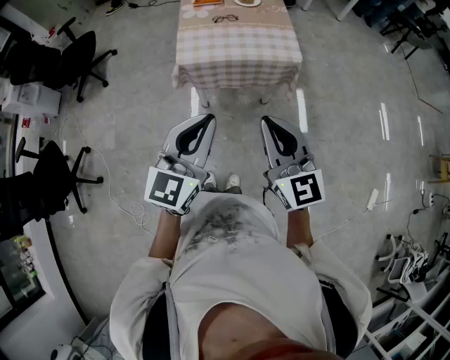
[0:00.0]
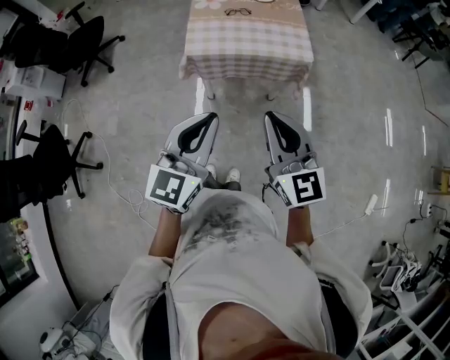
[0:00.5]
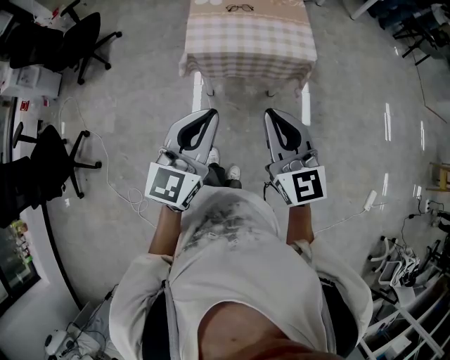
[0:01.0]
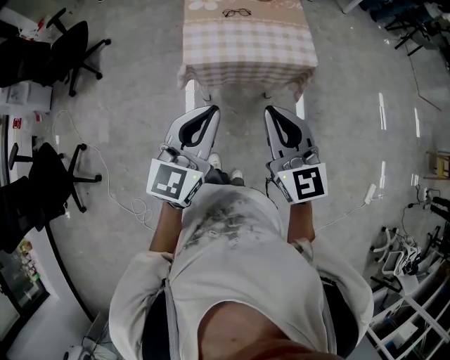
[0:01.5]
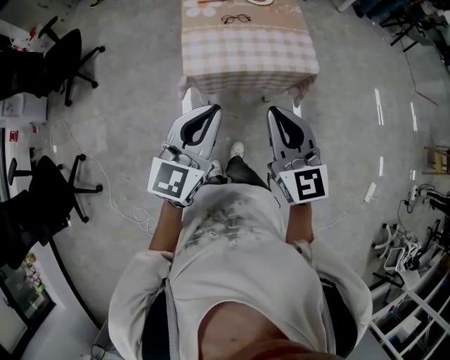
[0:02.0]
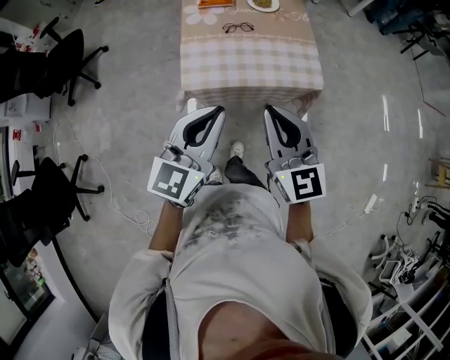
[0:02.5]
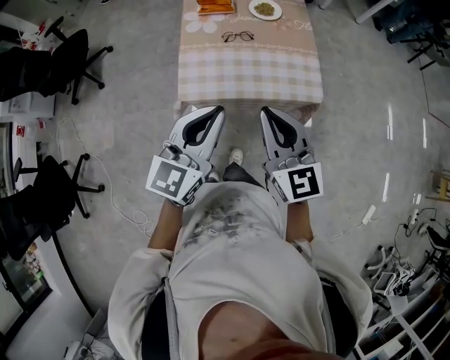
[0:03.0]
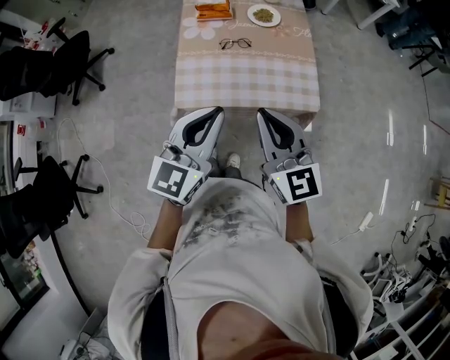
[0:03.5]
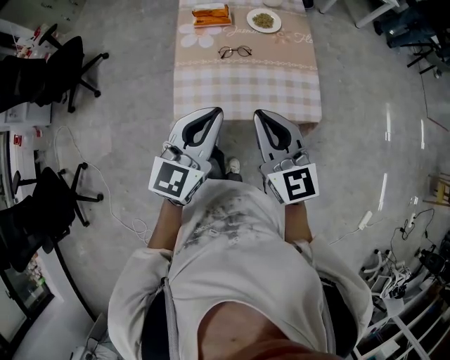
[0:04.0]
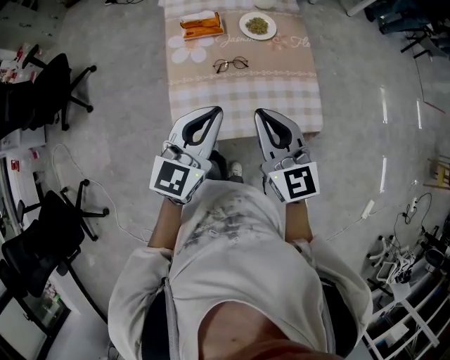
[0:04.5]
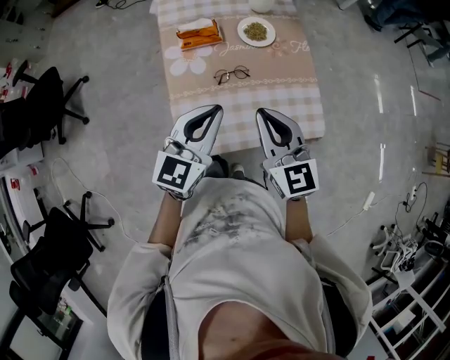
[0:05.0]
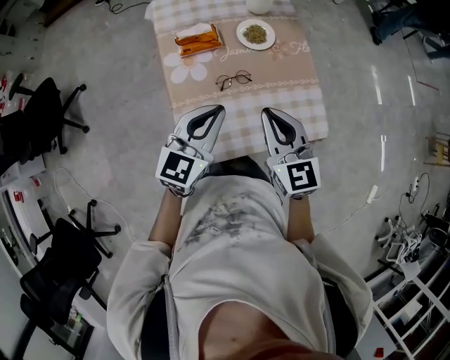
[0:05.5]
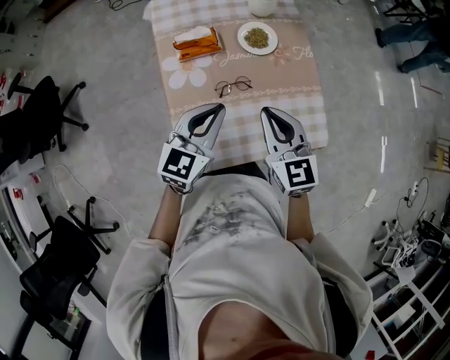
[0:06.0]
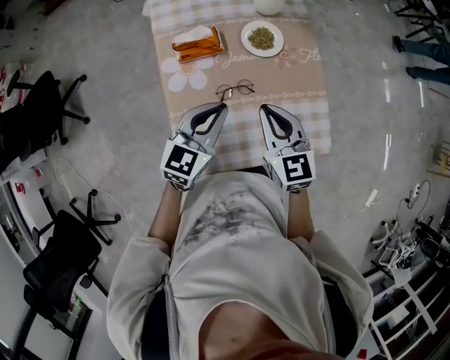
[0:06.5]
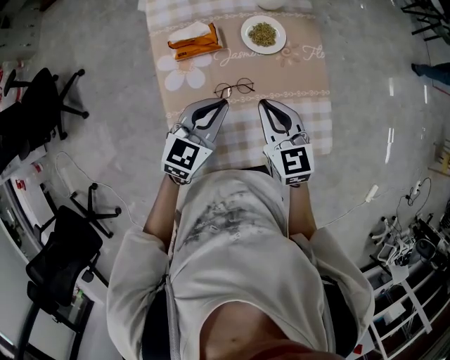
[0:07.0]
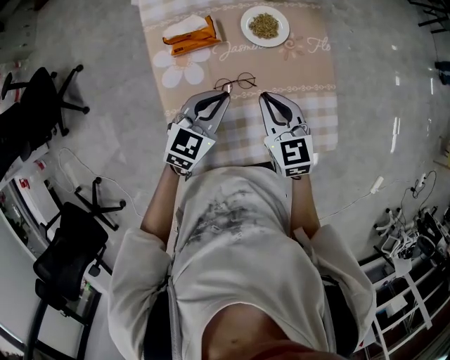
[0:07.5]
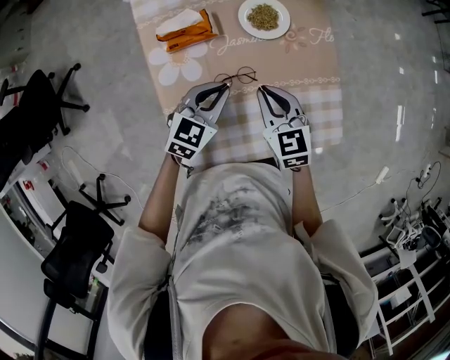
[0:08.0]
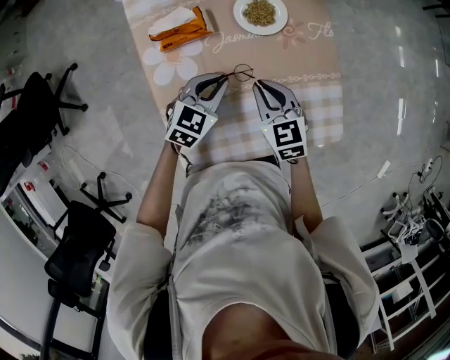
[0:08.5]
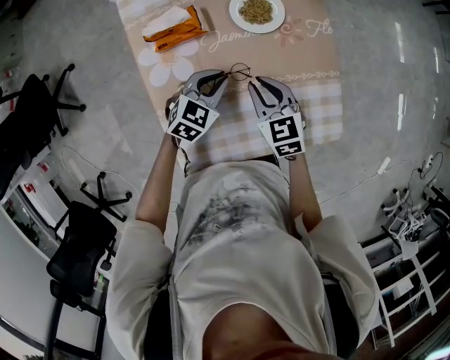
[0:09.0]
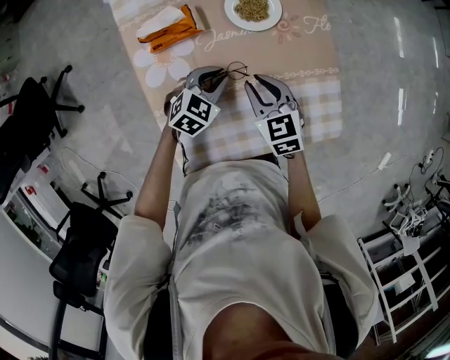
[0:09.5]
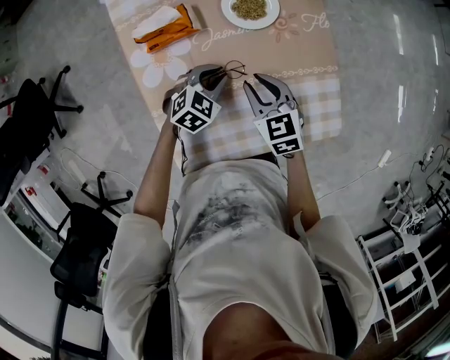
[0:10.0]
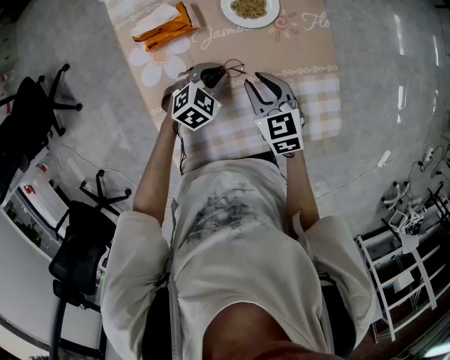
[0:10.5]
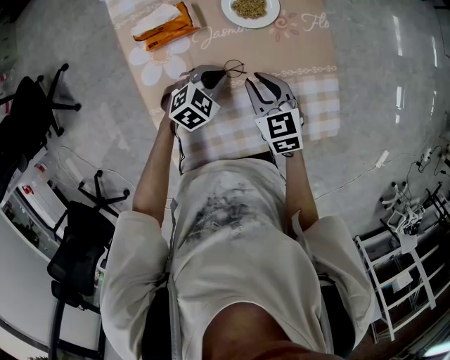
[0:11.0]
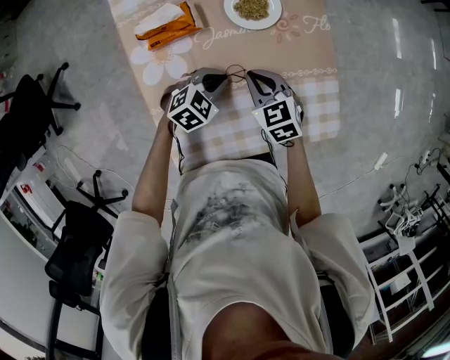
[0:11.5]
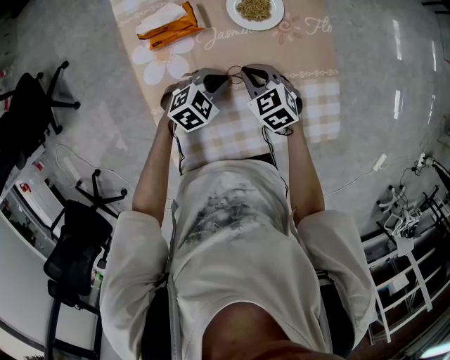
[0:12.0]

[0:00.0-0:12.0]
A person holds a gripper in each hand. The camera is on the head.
0:00.0 to 0:02.0: The two grippers go about 15 cm forward and to the left.
0:02.0 to 0:04.0: Both grippers move forward, roughly 20 cm.
0:04.0 to 0:06.0: The right gripper goes about 20 cm forward; the left gripper travels forward and downward by some 25 cm.
0:06.0 to 0:08.0: Both grippers travel together downward and forward, approximately 15 cm. The left gripper rotates about 20 degrees.
0:08.0 to 0:10.0: The right gripper is displaced downward by approximately 5 cm, and opens; the left gripper is displaced downward by approximately 10 cm, and changes its angle by roughly 20 degrees.
0:10.0 to 0:12.0: The right gripper ends up about 5 cm from where it was, and closes its fingers.

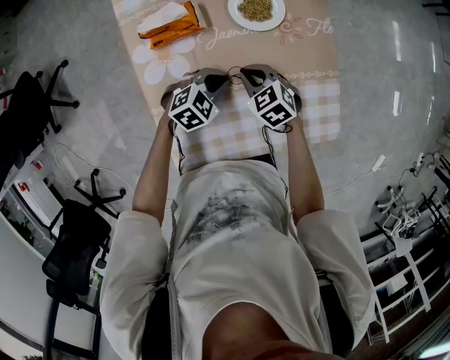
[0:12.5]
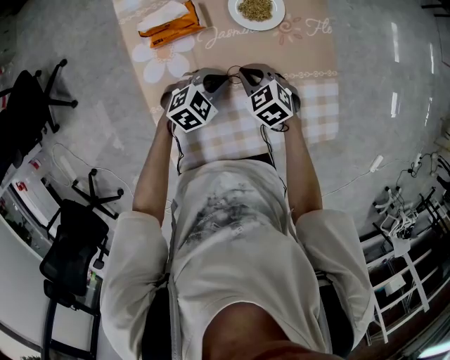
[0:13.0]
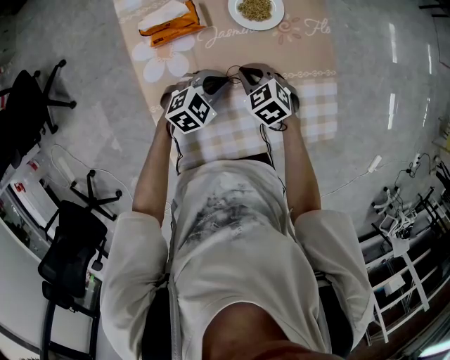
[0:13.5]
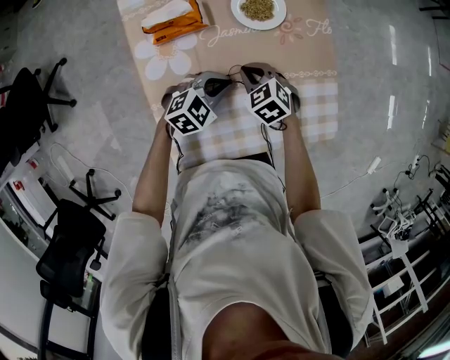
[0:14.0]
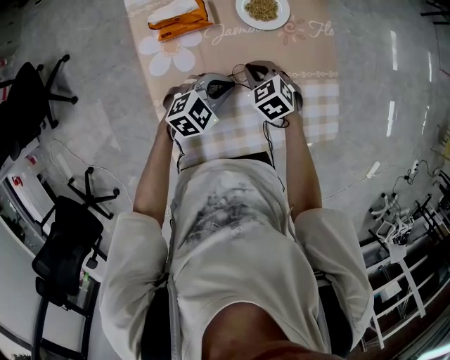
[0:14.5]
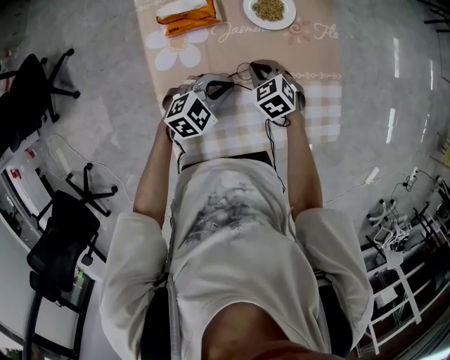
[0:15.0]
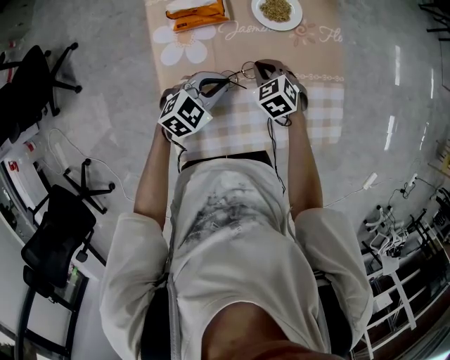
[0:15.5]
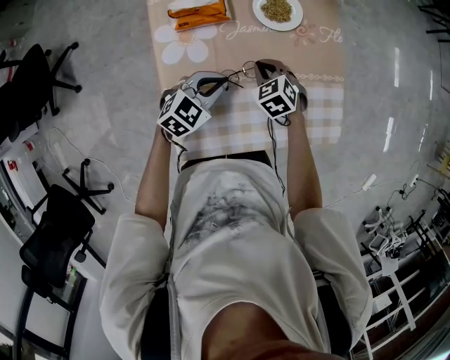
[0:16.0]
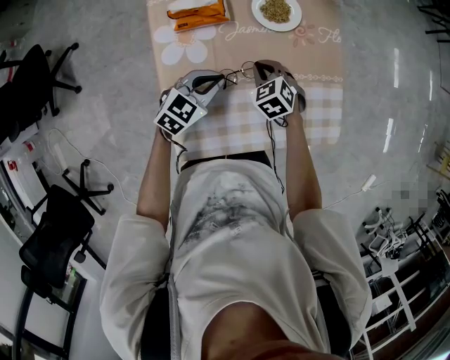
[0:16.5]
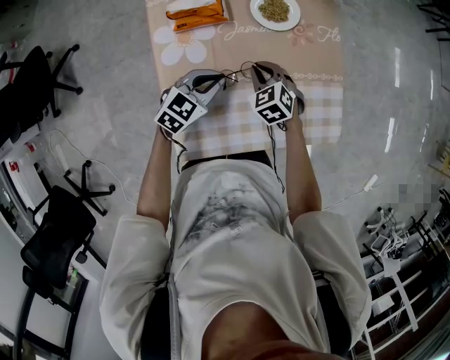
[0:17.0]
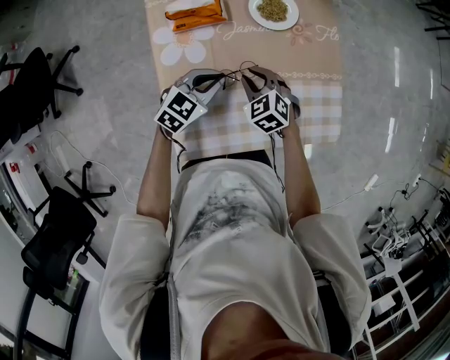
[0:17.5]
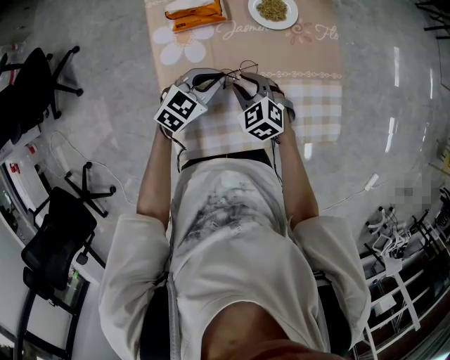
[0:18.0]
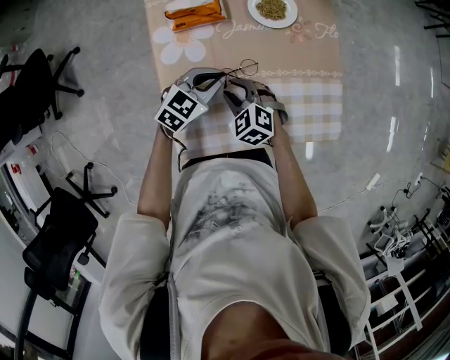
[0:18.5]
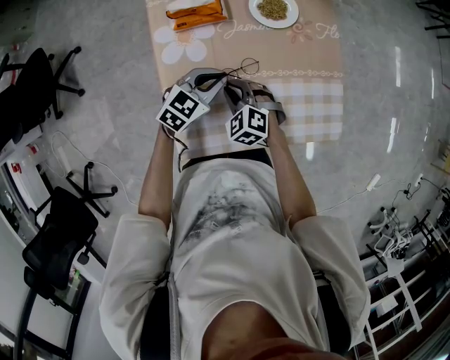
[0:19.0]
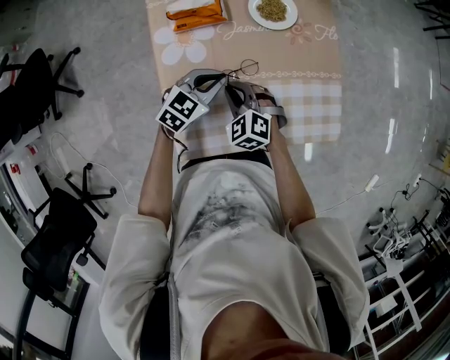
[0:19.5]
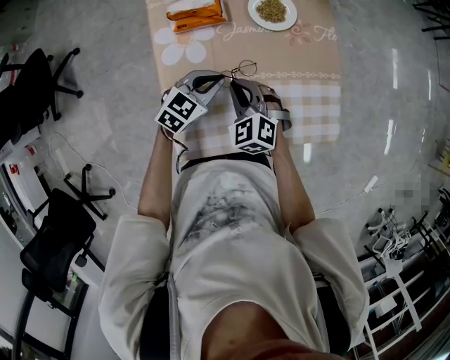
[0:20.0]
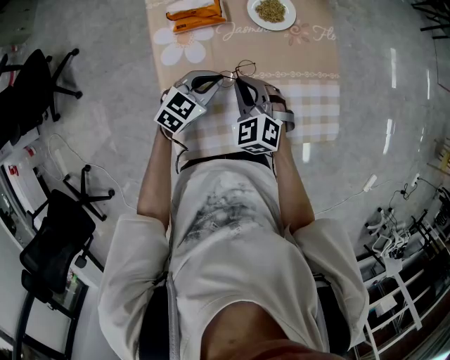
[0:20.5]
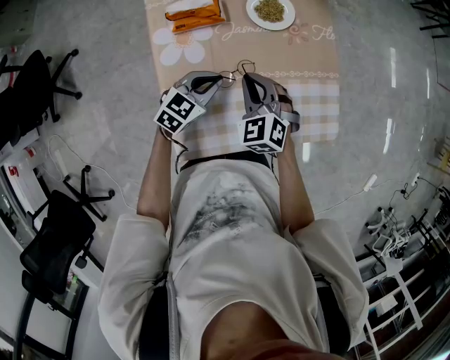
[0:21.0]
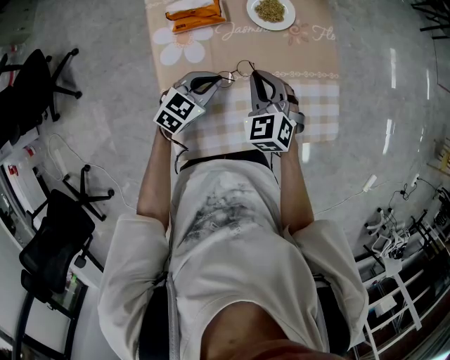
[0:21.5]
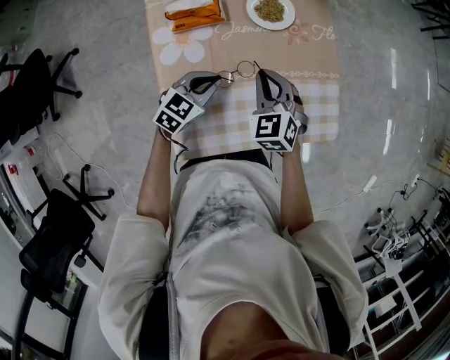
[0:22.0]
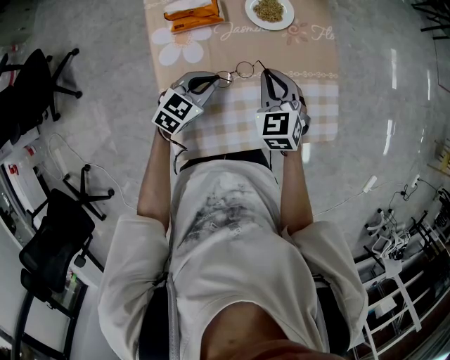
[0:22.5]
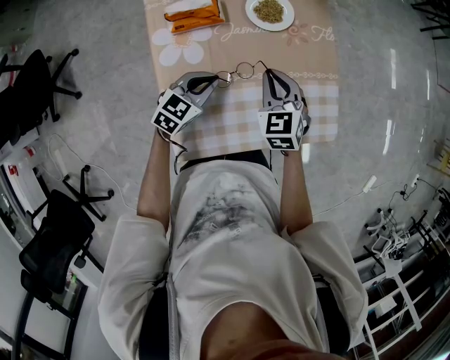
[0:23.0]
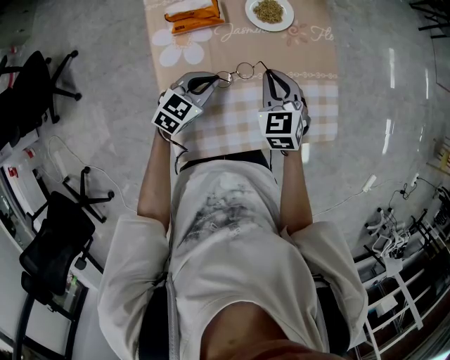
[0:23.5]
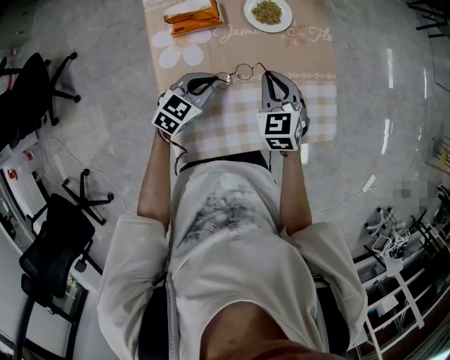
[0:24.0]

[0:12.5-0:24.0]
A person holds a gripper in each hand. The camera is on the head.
0:12.5 to 0:14.5: The left gripper changes place by some 5 cm.
0:14.5 to 0:16.5: The left gripper shifts approximately 5 cm to the left.
0:16.5 to 0:18.5: The right gripper moves backward and to the left, roughly 10 cm, and opens up.
0:18.5 to 0:20.0: The right gripper changes place by about 5 cm, and closes its fingers.
0:20.0 to 0:22.0: The right gripper travels to the right and forward by roughly 10 cm.
0:22.0 to 0:24.0: The grippers make only small movements.

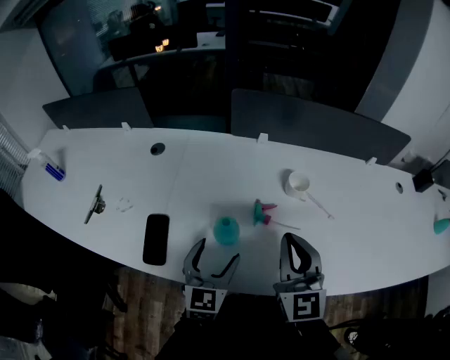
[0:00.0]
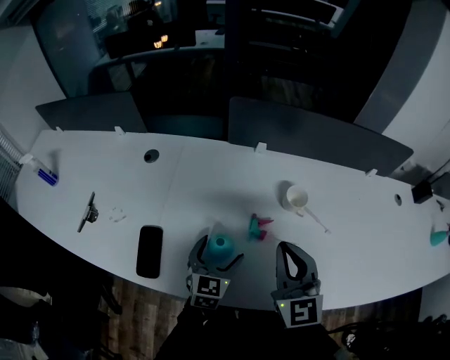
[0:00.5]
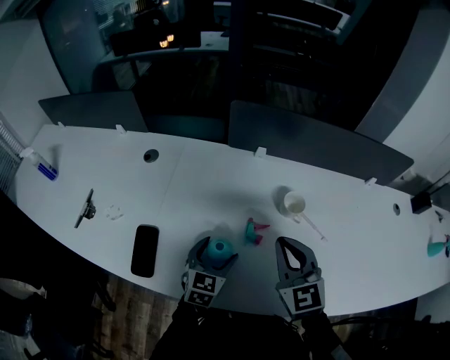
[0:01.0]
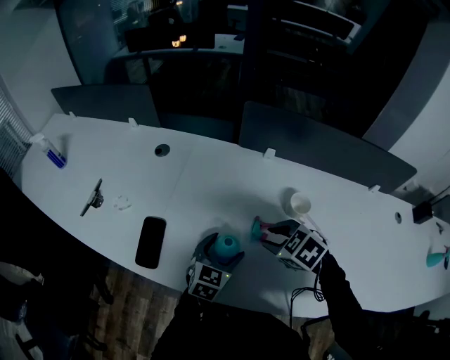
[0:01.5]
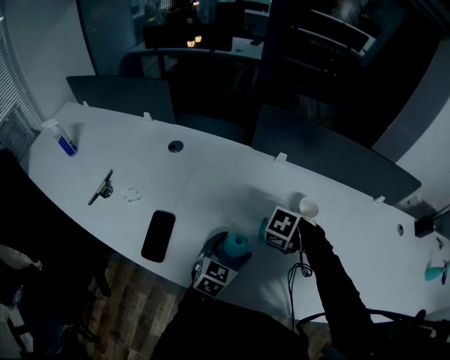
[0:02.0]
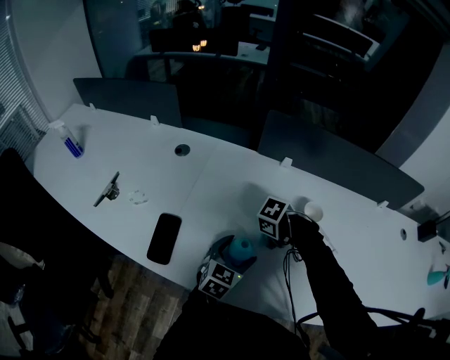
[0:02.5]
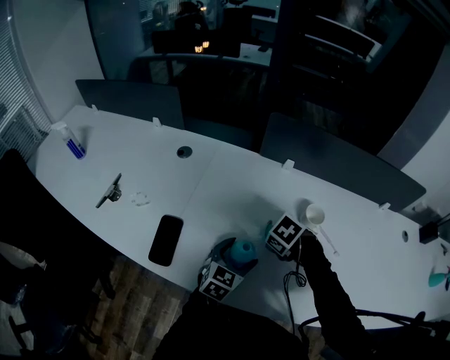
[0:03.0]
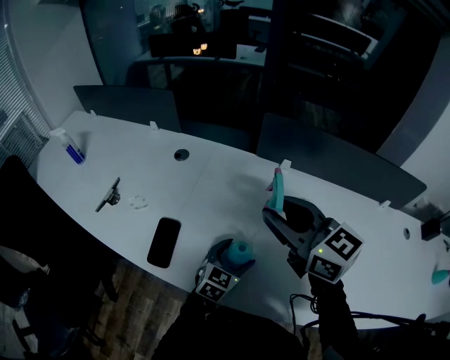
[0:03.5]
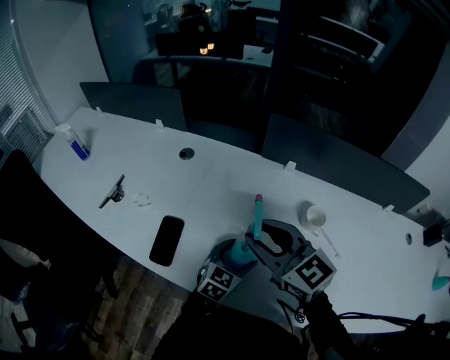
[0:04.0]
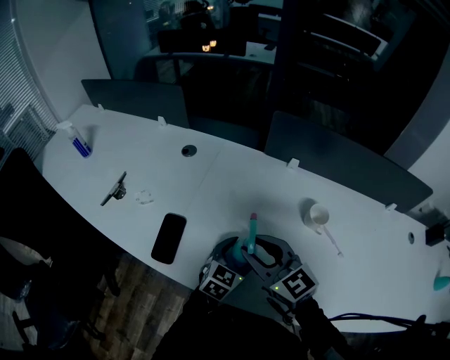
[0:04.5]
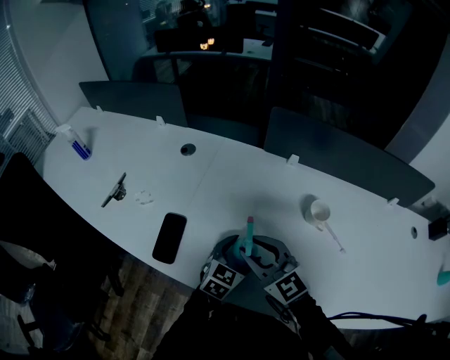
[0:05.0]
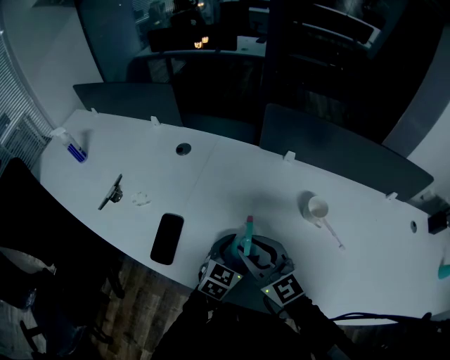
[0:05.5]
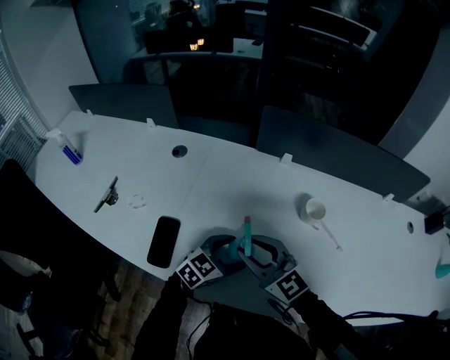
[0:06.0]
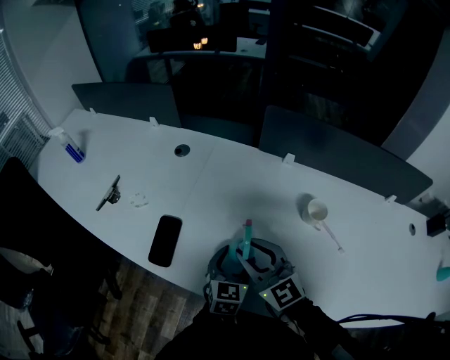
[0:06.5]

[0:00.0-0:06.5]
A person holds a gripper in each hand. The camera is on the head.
0:00.0 to 0:02.0: The left gripper changes place by approximately 10 cm. The right gripper shifts about 20 cm downward, angles its fingers downward, by about 80 degrees, and opens its fingers.
0:02.0 to 0:04.5: The right gripper travels upward by some 15 cm, and angles its fingers upward, by roughly 70 degrees.
